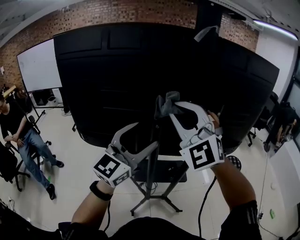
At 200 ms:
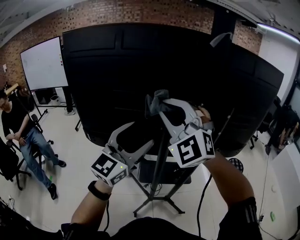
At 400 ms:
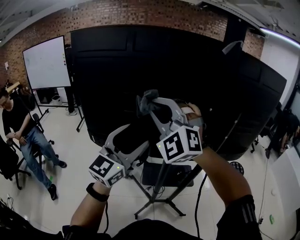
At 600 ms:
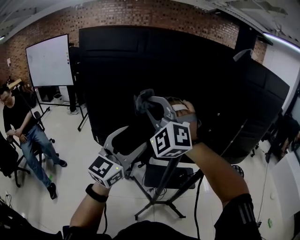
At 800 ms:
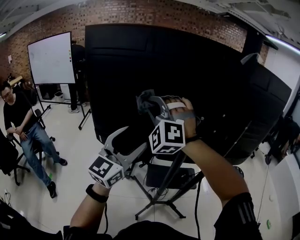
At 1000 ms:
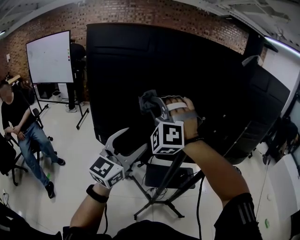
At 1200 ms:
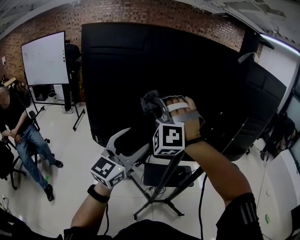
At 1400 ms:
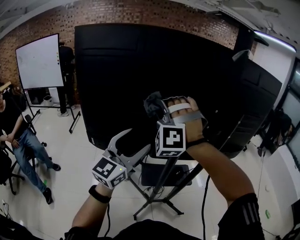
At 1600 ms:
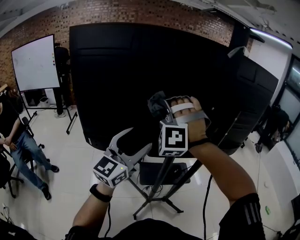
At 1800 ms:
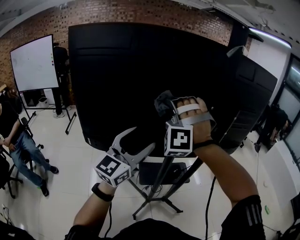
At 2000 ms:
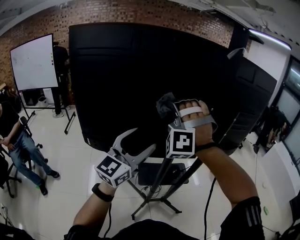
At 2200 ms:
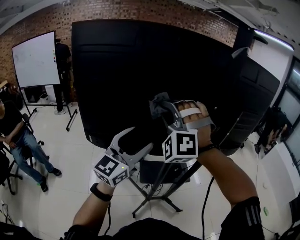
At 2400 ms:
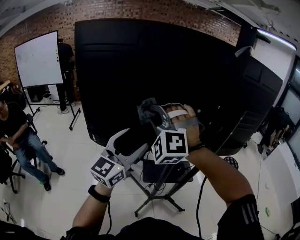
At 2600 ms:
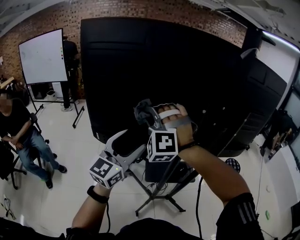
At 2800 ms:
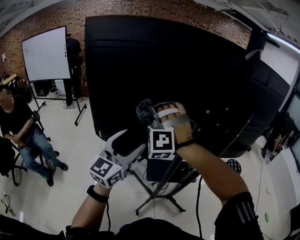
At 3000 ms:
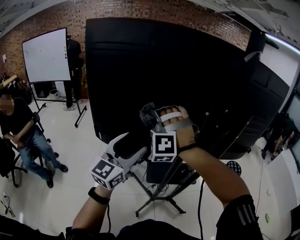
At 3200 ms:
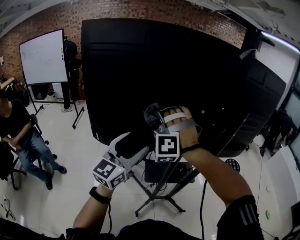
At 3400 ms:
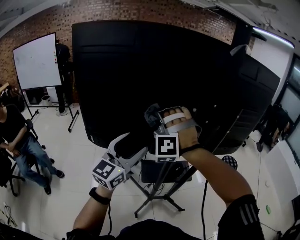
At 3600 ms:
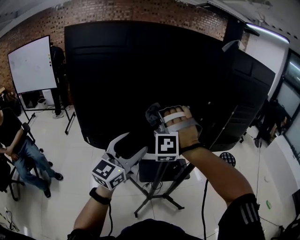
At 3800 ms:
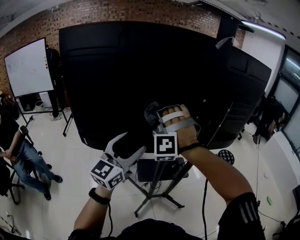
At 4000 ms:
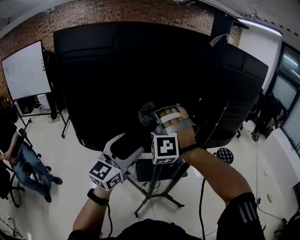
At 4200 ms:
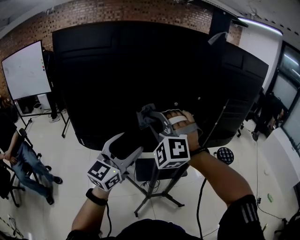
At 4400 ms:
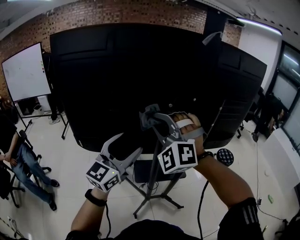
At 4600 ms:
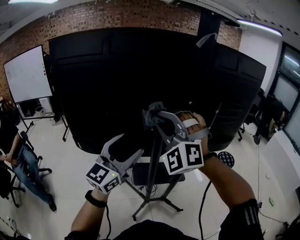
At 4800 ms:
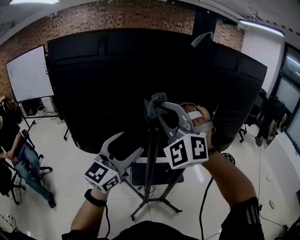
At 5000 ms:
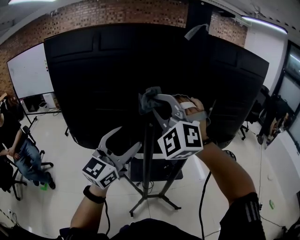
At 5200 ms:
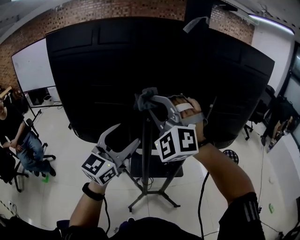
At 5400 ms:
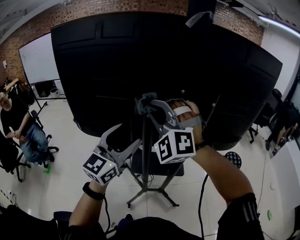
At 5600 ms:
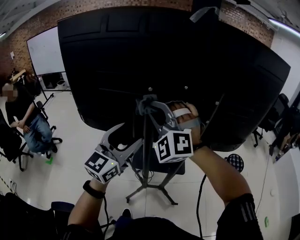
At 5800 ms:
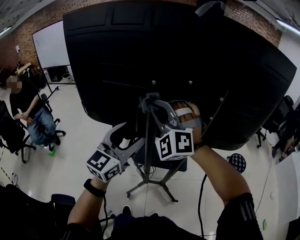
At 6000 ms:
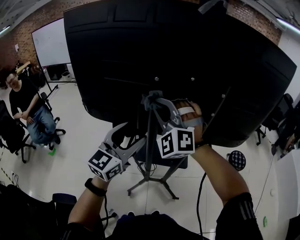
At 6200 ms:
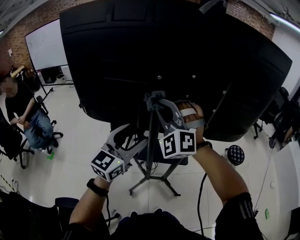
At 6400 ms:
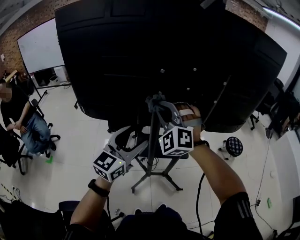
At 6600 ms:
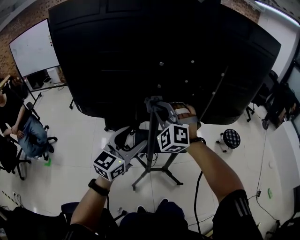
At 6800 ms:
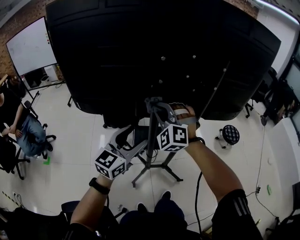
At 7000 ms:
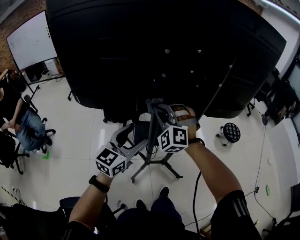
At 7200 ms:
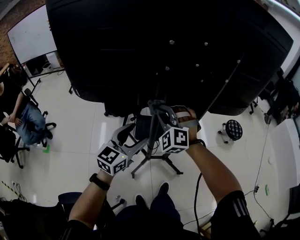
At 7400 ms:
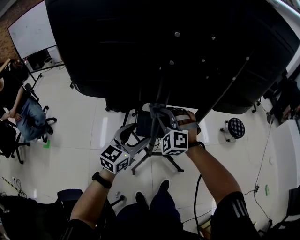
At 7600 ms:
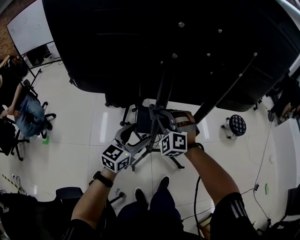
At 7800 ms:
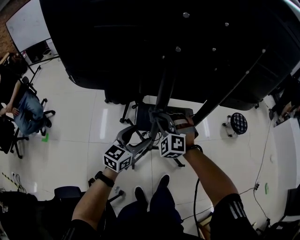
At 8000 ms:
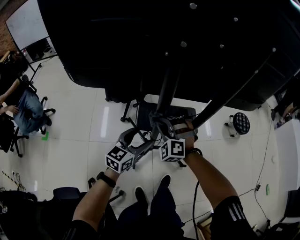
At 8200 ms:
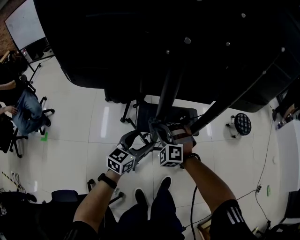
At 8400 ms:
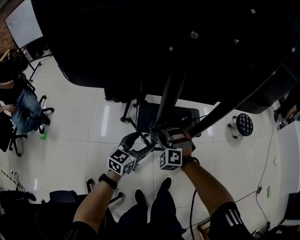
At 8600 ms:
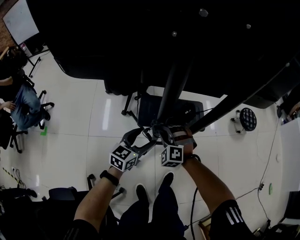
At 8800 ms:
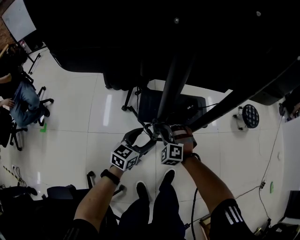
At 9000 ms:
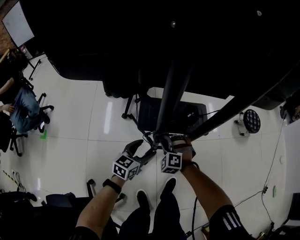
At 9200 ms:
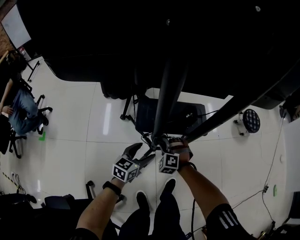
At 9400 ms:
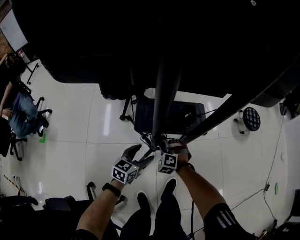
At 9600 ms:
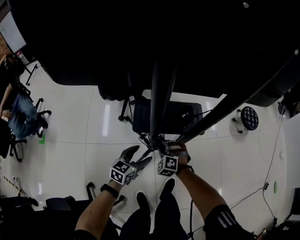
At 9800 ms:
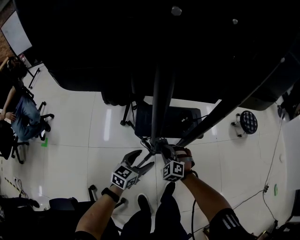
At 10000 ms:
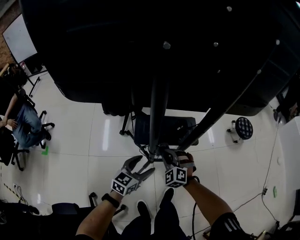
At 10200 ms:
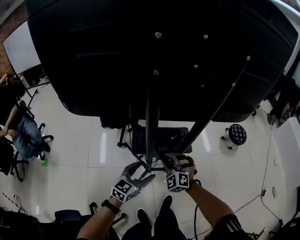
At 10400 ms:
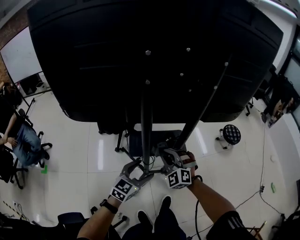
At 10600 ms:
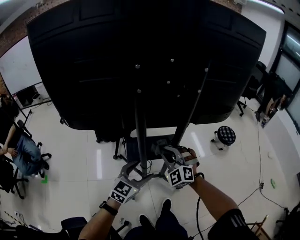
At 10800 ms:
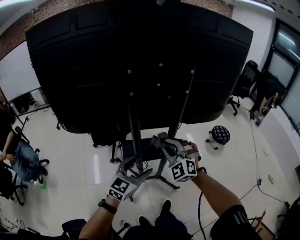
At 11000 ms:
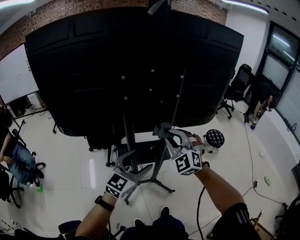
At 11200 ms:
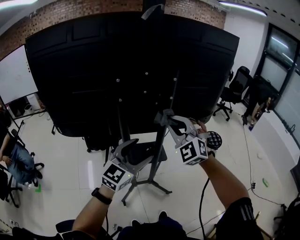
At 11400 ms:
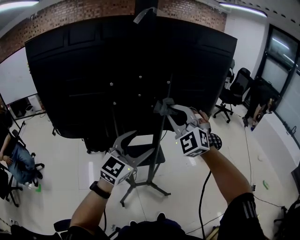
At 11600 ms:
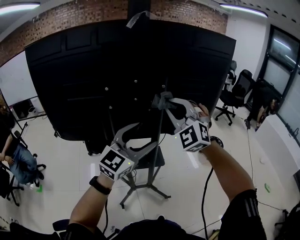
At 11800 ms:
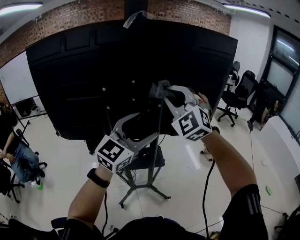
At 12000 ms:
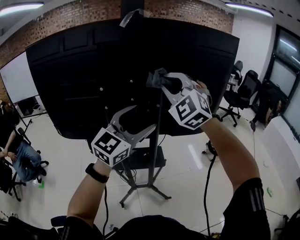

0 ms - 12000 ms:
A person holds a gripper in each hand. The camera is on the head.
0 ms - 1600 ms: The right gripper travels to the left and forward by about 15 cm, and rolls counterclockwise, seen from behind, by roughly 40 degrees. Meanwhile the left gripper moves to the left, about 15 cm.
1600 ms - 3000 ms: The right gripper moves to the left and downward, some 10 cm; the left gripper heads to the left, covering about 5 cm.
3000 ms - 4400 ms: Both grippers move to the right, some 10 cm. The right gripper changes its angle by roughly 20 degrees.
4400 ms - 6000 ms: The left gripper travels to the right and downward by roughly 10 cm. Meanwhile the right gripper heads to the right, covering approximately 5 cm.
6000 ms - 7600 ms: The grippers both shift downward by about 25 cm. The right gripper rotates some 20 degrees. Meanwhile the left gripper rotates some 20 degrees.
7600 ms - 9000 ms: Both grippers move downward, approximately 30 cm.
9000 ms - 10400 ms: Both grippers move upward, roughly 25 cm. The left gripper swivels some 20 degrees. The right gripper rotates roughly 20 degrees.
10400 ms - 12000 ms: Both grippers move upward, some 40 cm. The left gripper swivels approximately 30 degrees. The right gripper turns by about 20 degrees.

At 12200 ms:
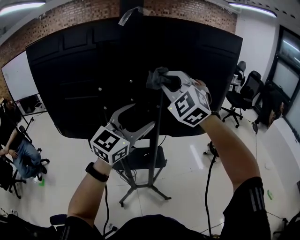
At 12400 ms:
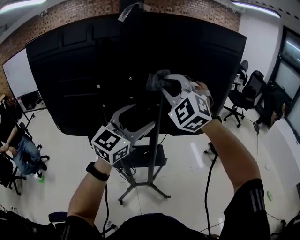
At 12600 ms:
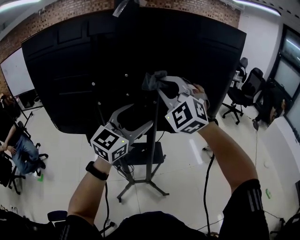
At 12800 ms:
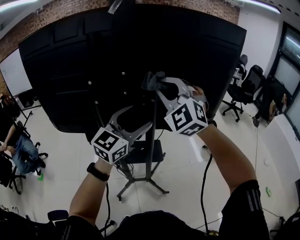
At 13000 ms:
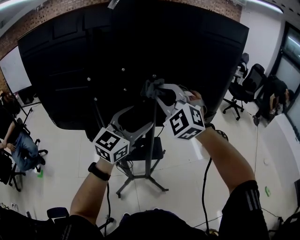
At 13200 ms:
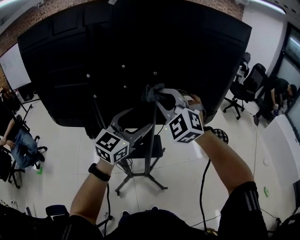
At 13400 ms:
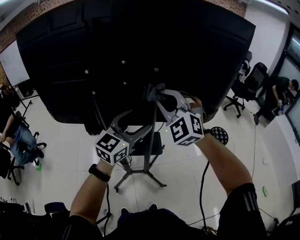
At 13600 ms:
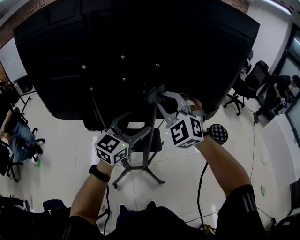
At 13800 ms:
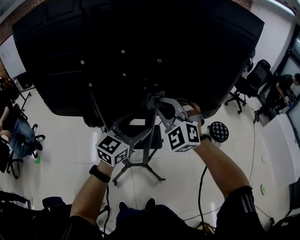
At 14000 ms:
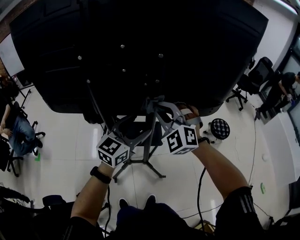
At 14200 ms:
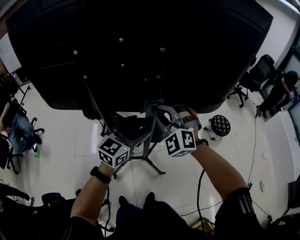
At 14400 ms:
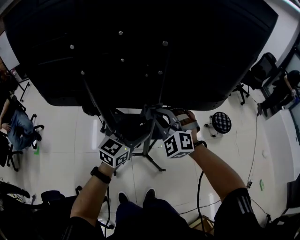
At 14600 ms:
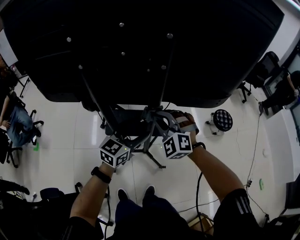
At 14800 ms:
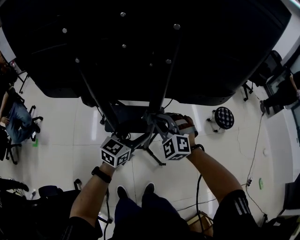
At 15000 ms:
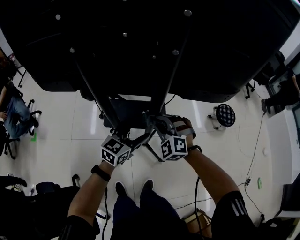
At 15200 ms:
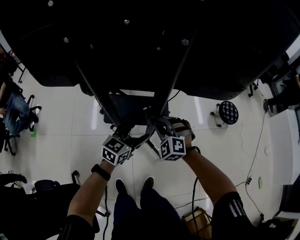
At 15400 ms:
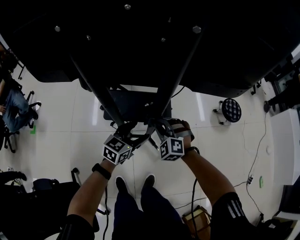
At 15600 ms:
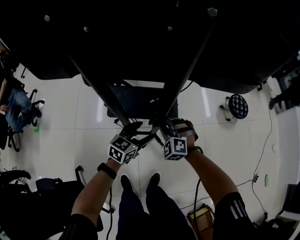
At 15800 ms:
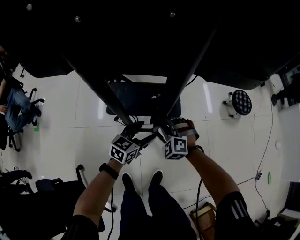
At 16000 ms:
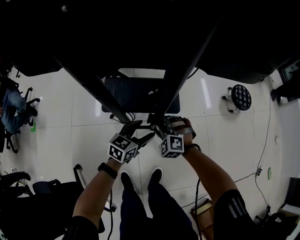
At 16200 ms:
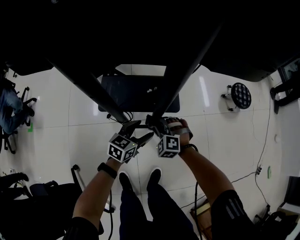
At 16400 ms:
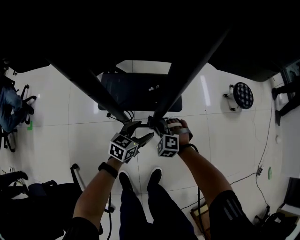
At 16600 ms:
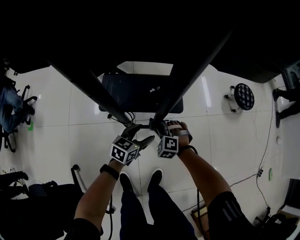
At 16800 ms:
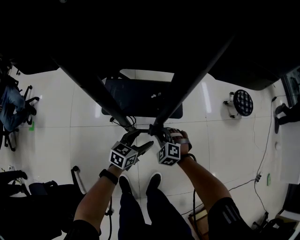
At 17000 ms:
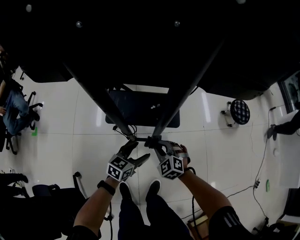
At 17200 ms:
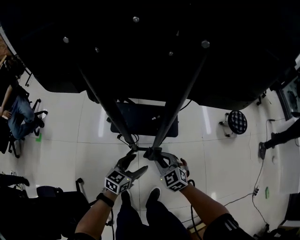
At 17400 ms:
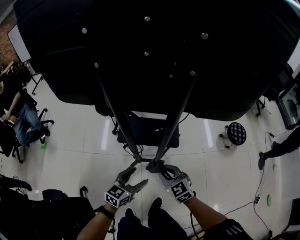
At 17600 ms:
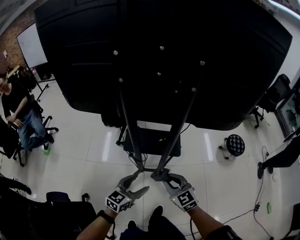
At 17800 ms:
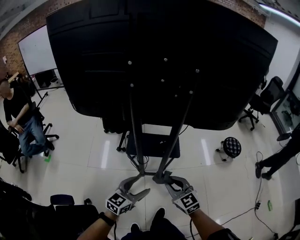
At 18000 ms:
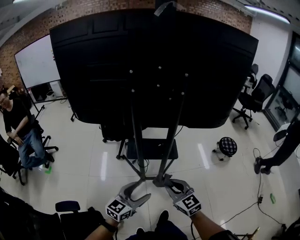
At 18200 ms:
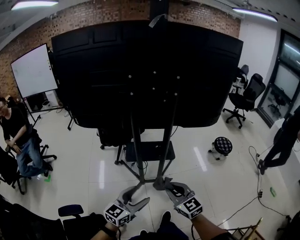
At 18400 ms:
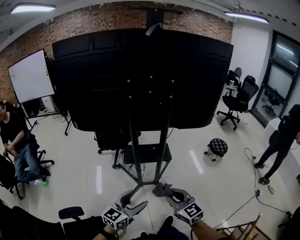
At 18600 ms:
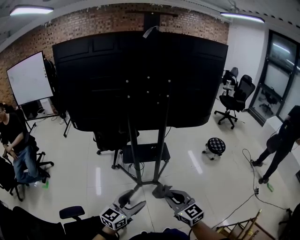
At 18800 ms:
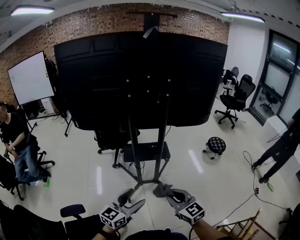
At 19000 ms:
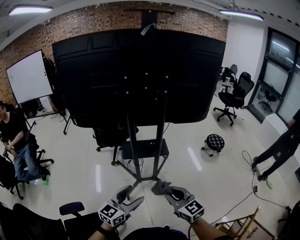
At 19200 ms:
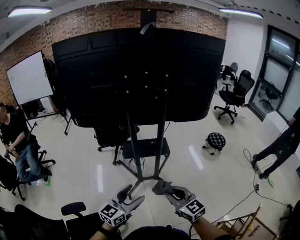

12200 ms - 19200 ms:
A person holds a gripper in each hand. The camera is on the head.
12200 ms - 13600 ms: The two grippers go roughly 15 cm downward.
13600 ms - 15000 ms: Both grippers travel together downward, some 30 cm. The right gripper changes its angle by roughly 20 degrees. The left gripper turns by roughly 20 degrees.
15000 ms - 16400 ms: The grippers both shift downward by approximately 30 cm.
16400 ms - 17800 ms: Both grippers travel together upward and backward, some 40 cm. The right gripper tilts its fingers roughly 30 degrees upward.
17800 ms - 19200 ms: The right gripper is displaced backward by roughly 20 cm; the left gripper travels backward and upward by about 20 cm.

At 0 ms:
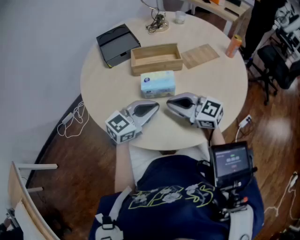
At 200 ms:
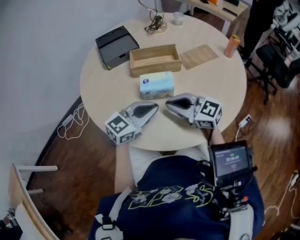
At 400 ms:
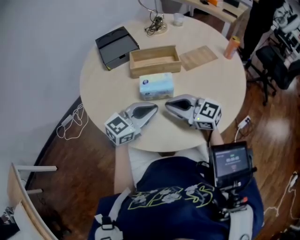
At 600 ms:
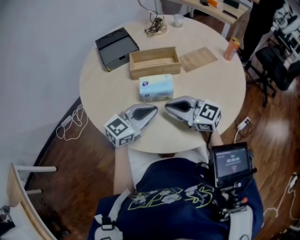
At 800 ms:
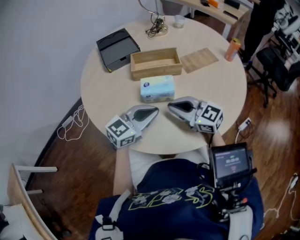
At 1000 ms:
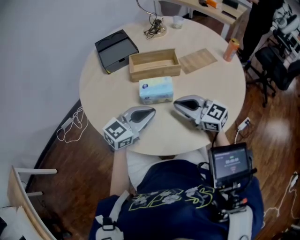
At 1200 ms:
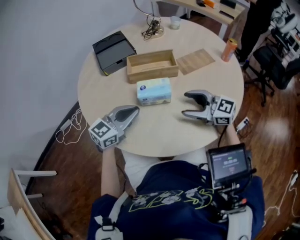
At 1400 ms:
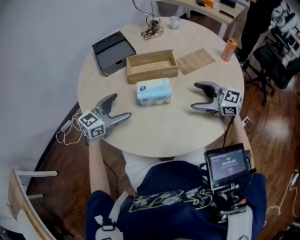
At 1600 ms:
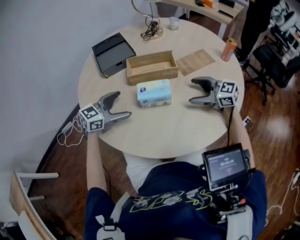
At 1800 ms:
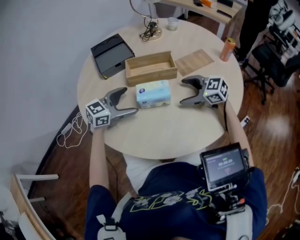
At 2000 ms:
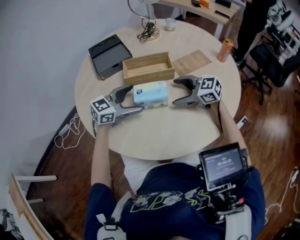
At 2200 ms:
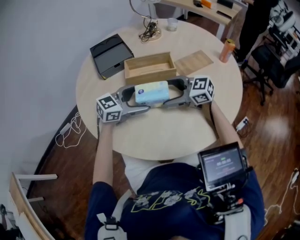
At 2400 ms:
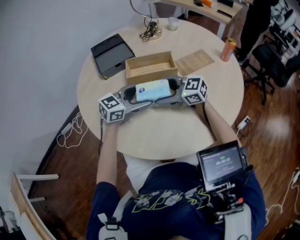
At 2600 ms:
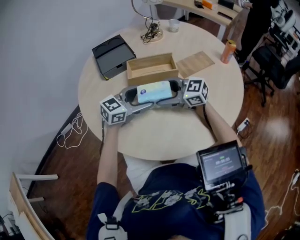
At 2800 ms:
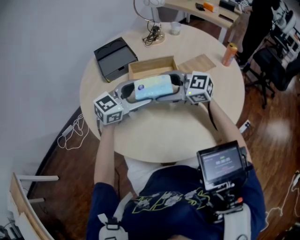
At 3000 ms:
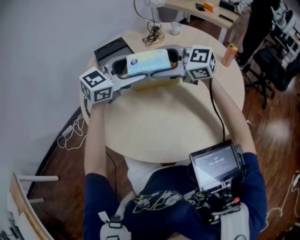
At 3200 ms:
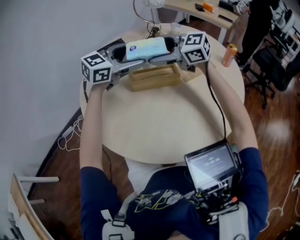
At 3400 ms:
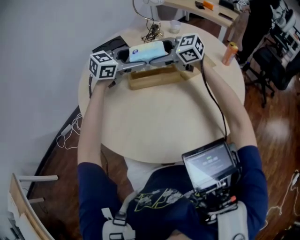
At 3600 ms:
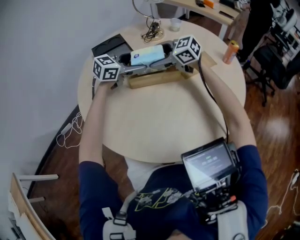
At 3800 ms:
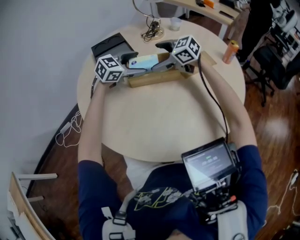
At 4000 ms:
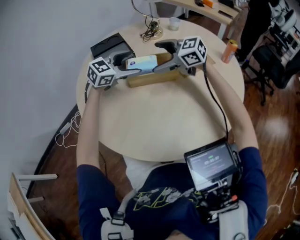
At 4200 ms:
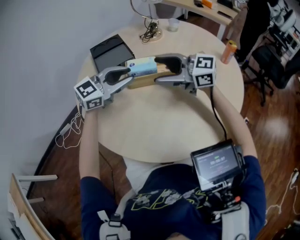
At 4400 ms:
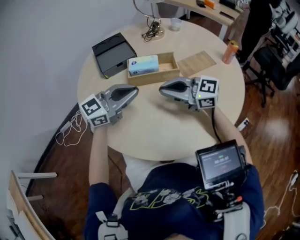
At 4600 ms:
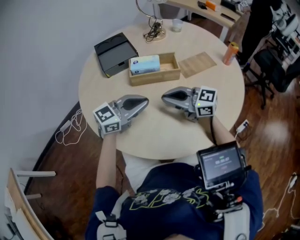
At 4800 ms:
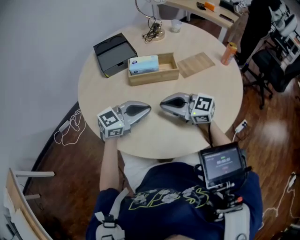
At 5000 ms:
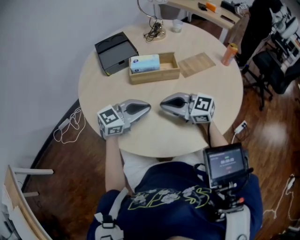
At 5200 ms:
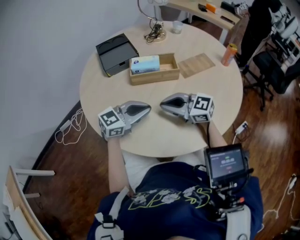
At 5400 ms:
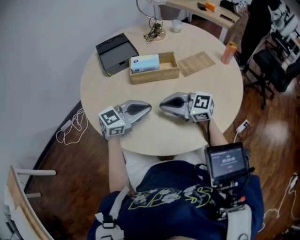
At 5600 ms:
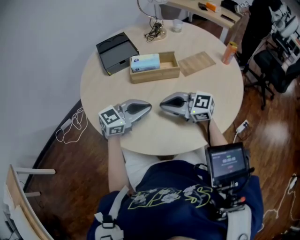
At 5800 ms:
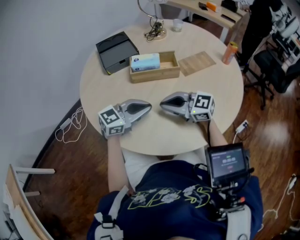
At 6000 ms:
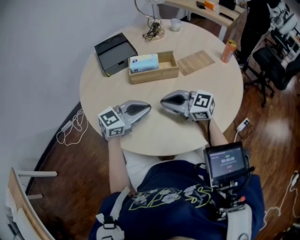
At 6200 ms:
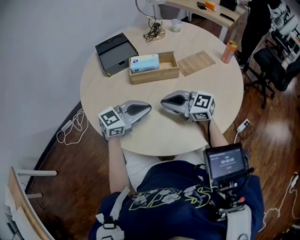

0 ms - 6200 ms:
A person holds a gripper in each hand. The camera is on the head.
0 ms - 1600 ms: The left gripper ends up about 15 cm from where it was, and opens up. The right gripper ends up approximately 15 cm from where it was, and opens up.
1600 ms - 3200 ms: The two grippers go roughly 20 cm upward.
3200 ms - 4600 ms: The left gripper moves up and down over approximately 15 cm, changing direction 2 times, and closes up. The right gripper moves up and down over some 15 cm, changing direction 2 times, and closes up.
4600 ms - 6200 ms: The grippers make only small movements.
